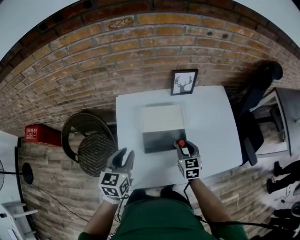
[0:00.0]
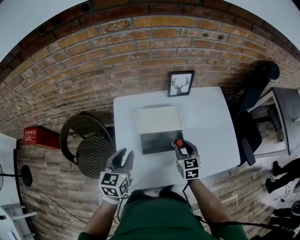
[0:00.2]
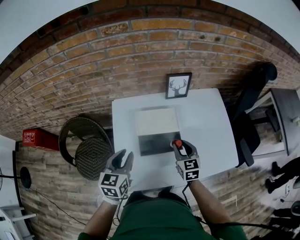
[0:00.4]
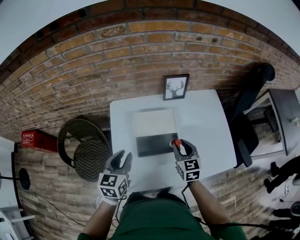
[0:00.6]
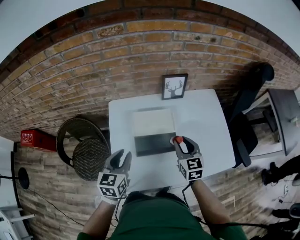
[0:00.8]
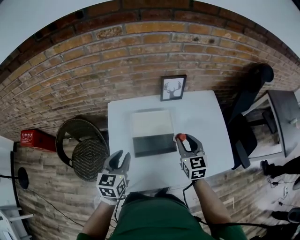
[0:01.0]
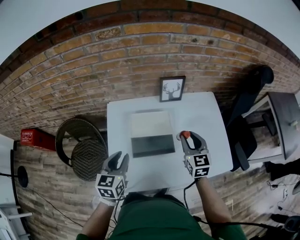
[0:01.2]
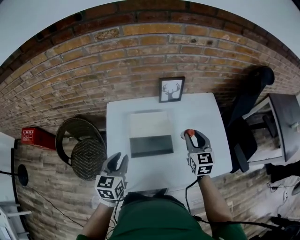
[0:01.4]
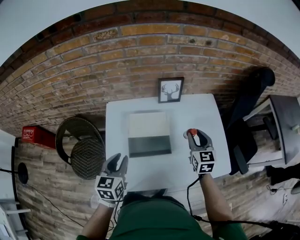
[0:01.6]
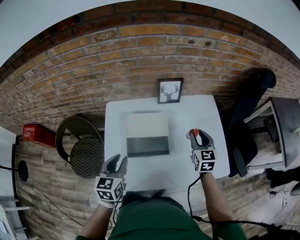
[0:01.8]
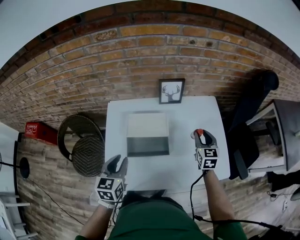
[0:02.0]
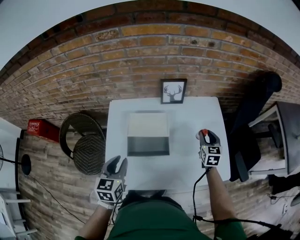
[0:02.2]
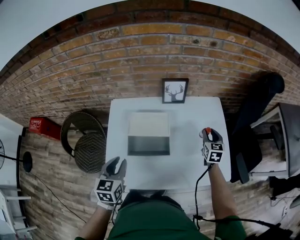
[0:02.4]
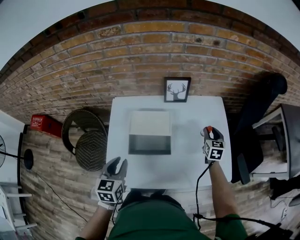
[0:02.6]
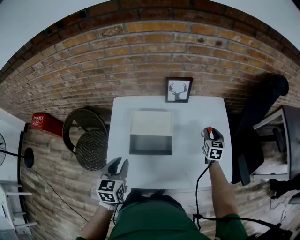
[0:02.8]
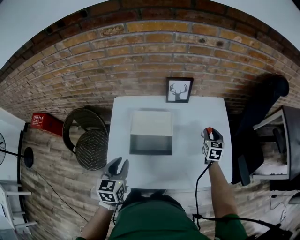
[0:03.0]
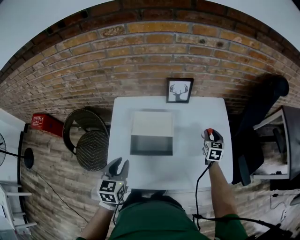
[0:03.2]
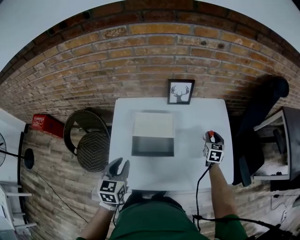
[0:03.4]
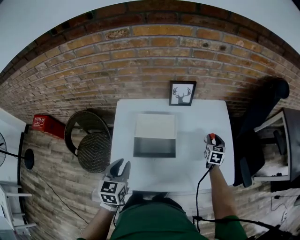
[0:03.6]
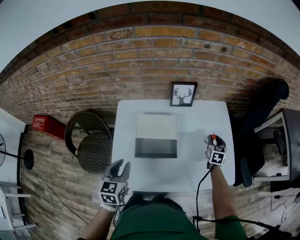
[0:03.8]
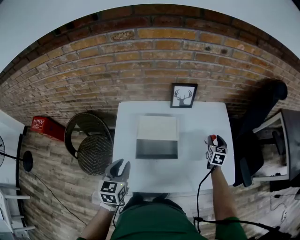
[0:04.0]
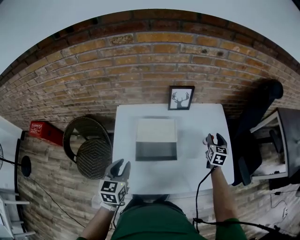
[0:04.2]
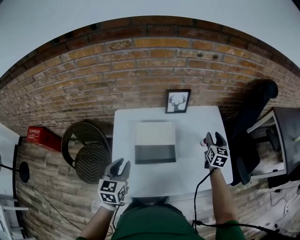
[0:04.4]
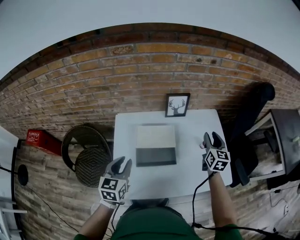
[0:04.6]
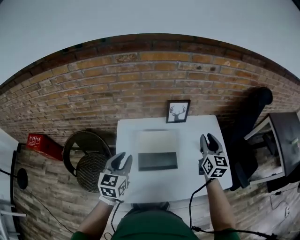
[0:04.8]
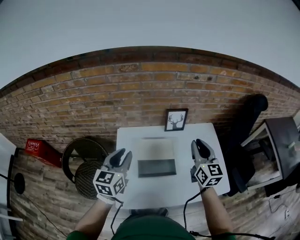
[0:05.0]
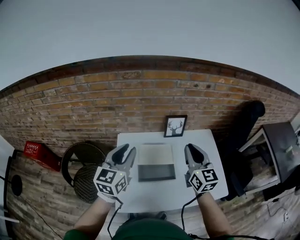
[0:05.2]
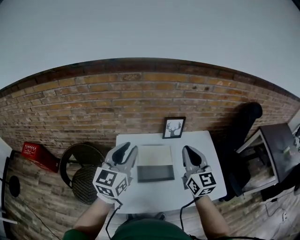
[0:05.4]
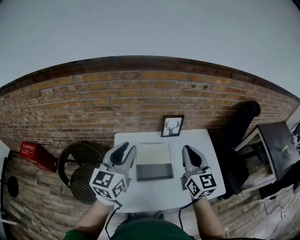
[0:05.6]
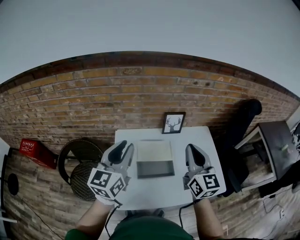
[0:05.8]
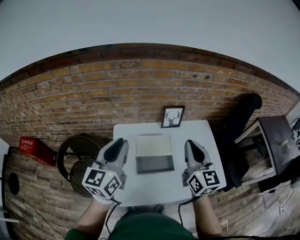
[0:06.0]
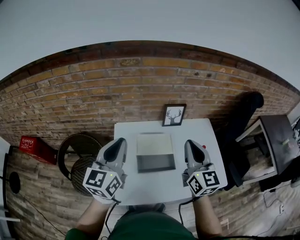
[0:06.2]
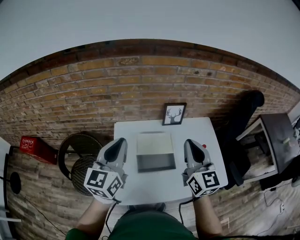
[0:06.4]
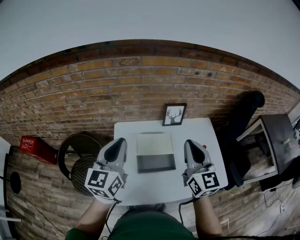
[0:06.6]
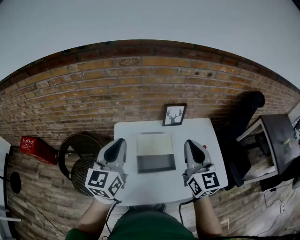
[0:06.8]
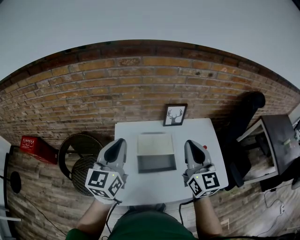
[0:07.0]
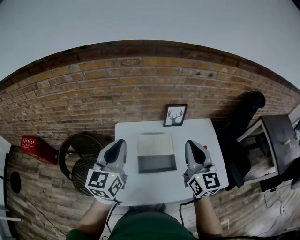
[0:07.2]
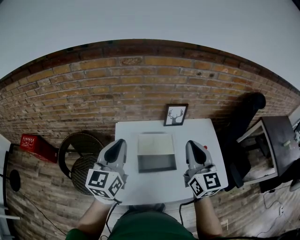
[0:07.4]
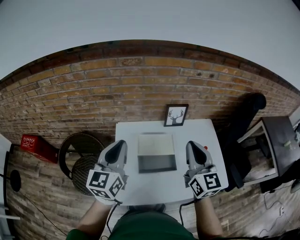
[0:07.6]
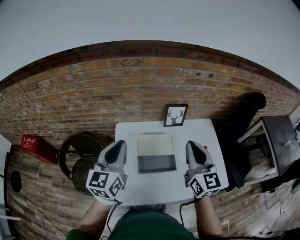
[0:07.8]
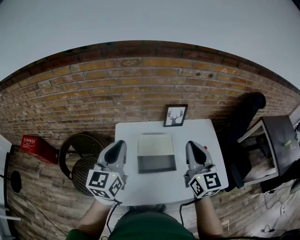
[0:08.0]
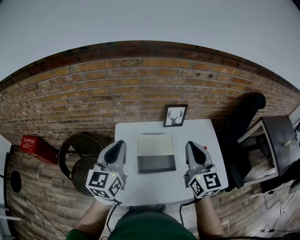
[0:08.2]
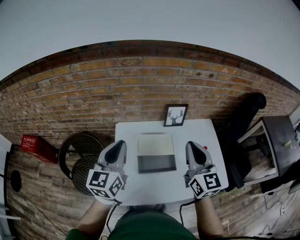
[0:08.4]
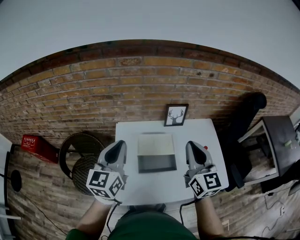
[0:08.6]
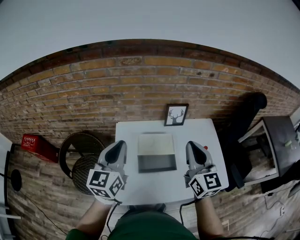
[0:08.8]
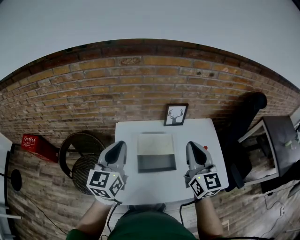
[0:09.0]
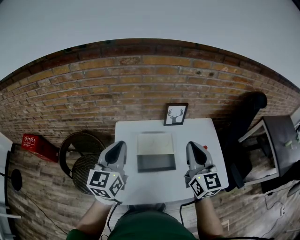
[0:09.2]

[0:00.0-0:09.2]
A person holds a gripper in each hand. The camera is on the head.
0:00.0 to 0:01.6: The right gripper is displaced to the right, upward and forward by roughly 20 cm, while the left gripper moves to the right, roughly 5 cm.
0:01.6 to 0:03.0: The right gripper goes roughly 15 cm downward, to the right and forward.
0:03.0 to 0:04.6: The left gripper shifts by approximately 5 cm. Meanwhile the right gripper is displaced upward by roughly 15 cm.
0:04.6 to 0:06.2: The left gripper is displaced upward by roughly 20 cm, swivels roughly 30 degrees, and closes. Meanwhile the right gripper shifts approximately 25 cm to the left, upward and backward, changes its angle by approximately 20 degrees, and closes up.
0:06.2 to 0:09.2: The grippers stay close to where they were, moving slightly.

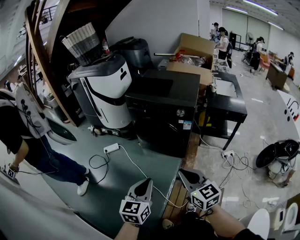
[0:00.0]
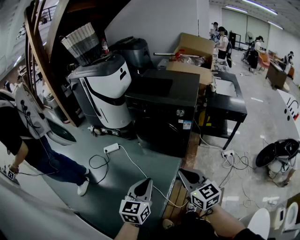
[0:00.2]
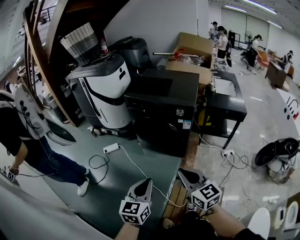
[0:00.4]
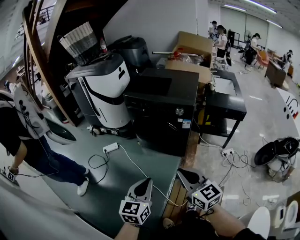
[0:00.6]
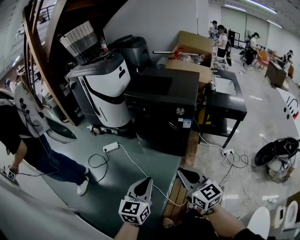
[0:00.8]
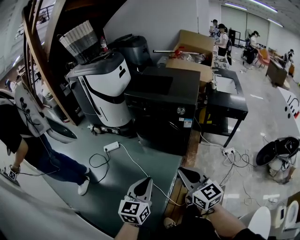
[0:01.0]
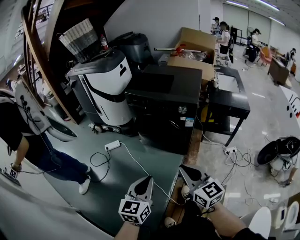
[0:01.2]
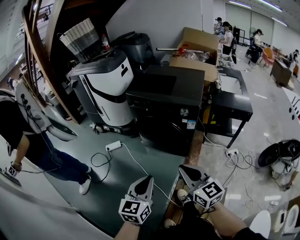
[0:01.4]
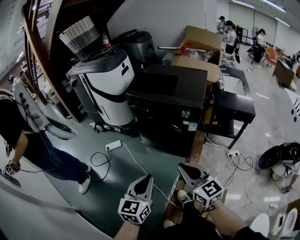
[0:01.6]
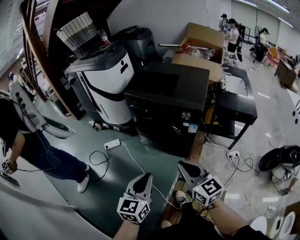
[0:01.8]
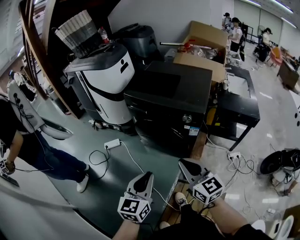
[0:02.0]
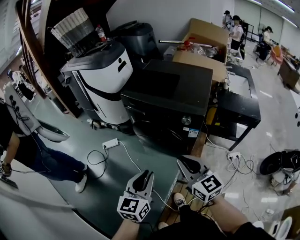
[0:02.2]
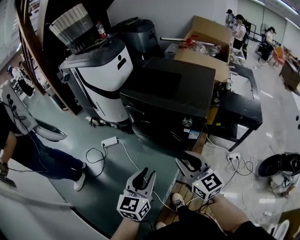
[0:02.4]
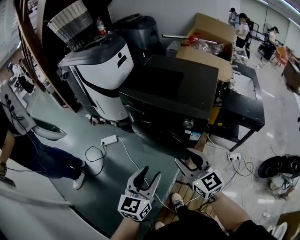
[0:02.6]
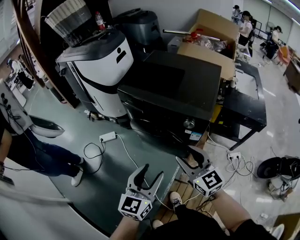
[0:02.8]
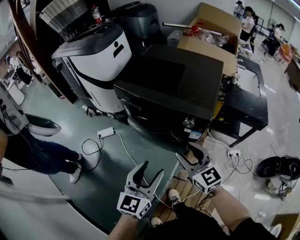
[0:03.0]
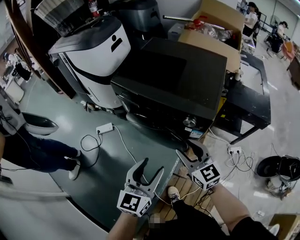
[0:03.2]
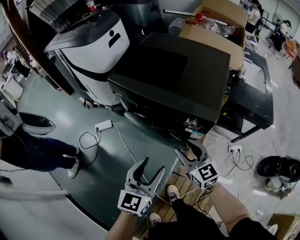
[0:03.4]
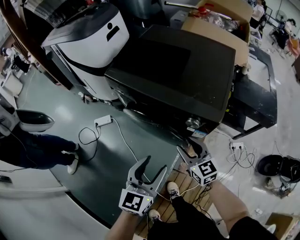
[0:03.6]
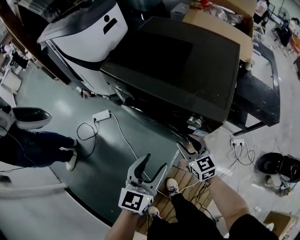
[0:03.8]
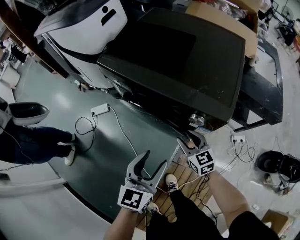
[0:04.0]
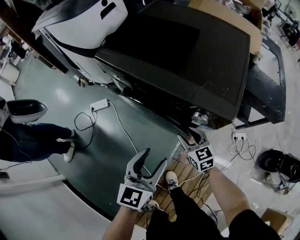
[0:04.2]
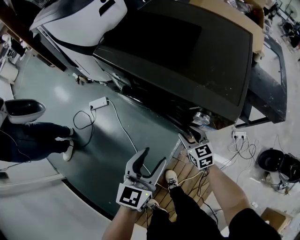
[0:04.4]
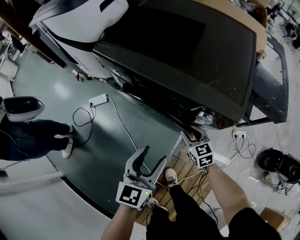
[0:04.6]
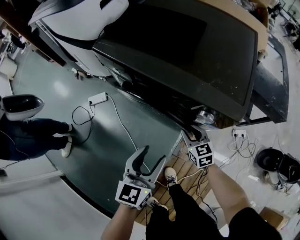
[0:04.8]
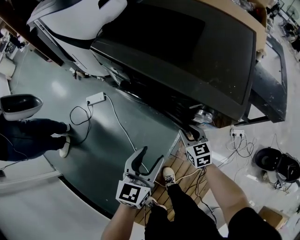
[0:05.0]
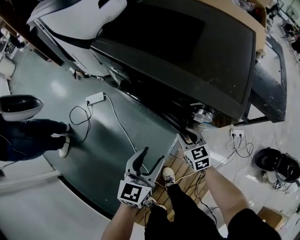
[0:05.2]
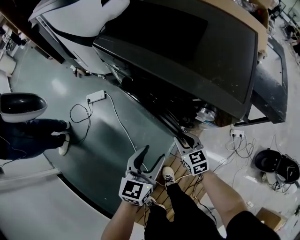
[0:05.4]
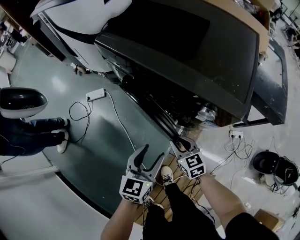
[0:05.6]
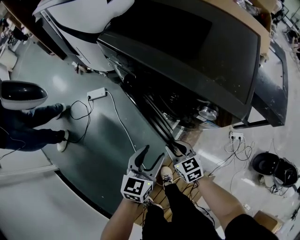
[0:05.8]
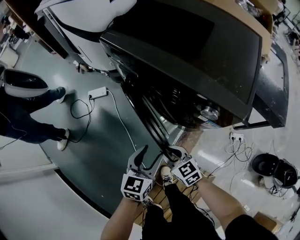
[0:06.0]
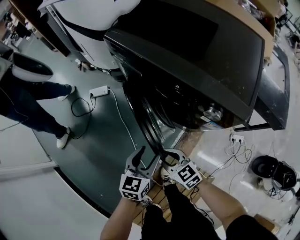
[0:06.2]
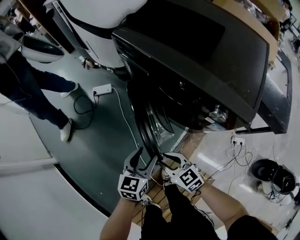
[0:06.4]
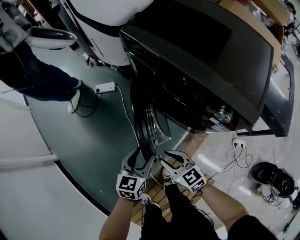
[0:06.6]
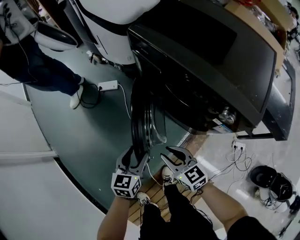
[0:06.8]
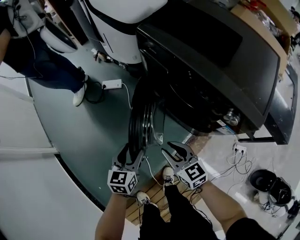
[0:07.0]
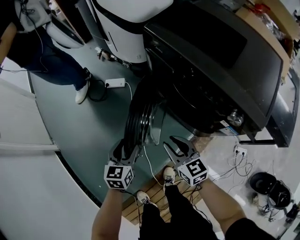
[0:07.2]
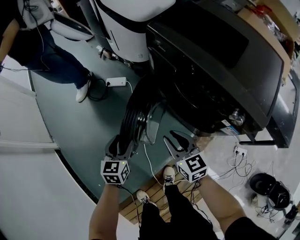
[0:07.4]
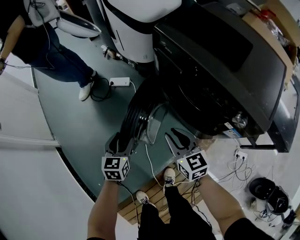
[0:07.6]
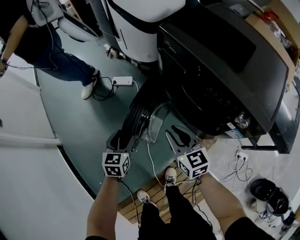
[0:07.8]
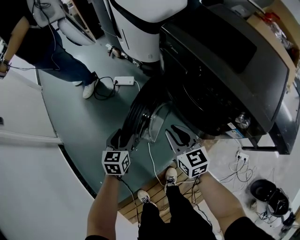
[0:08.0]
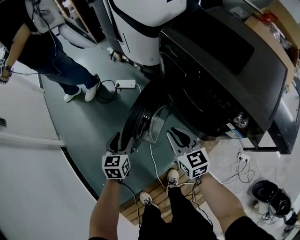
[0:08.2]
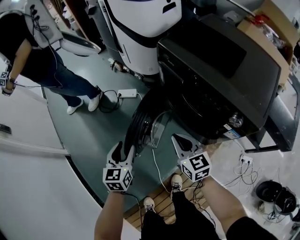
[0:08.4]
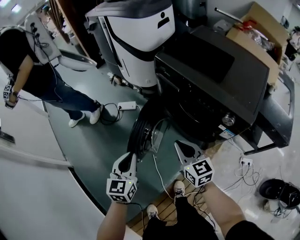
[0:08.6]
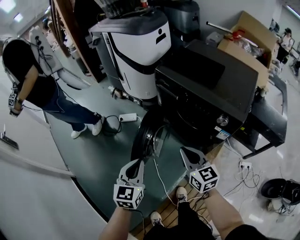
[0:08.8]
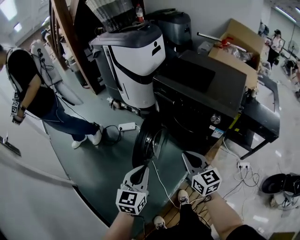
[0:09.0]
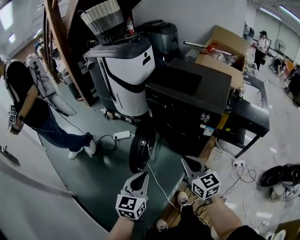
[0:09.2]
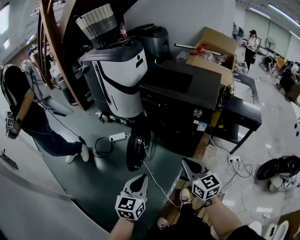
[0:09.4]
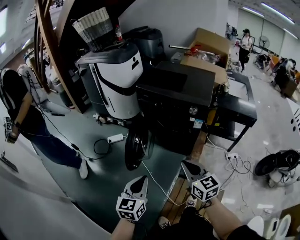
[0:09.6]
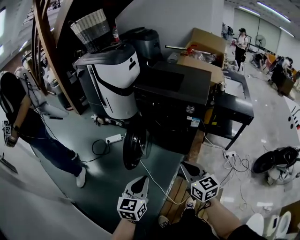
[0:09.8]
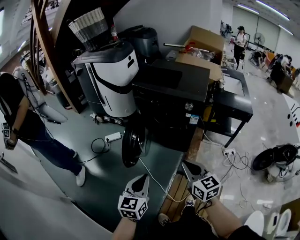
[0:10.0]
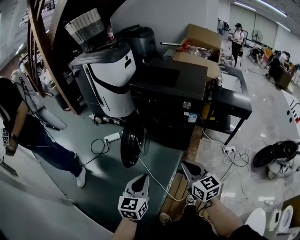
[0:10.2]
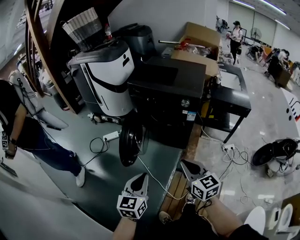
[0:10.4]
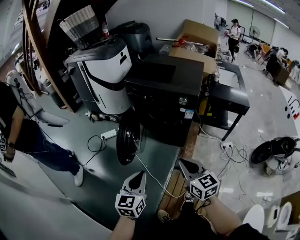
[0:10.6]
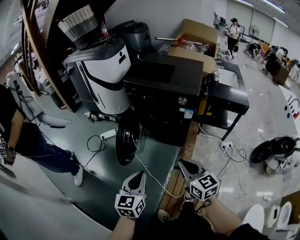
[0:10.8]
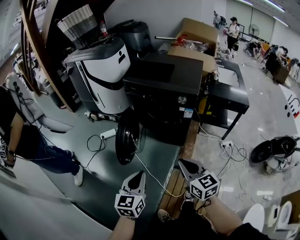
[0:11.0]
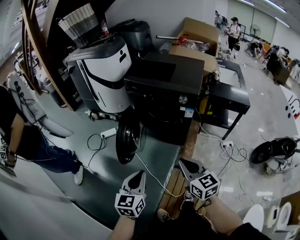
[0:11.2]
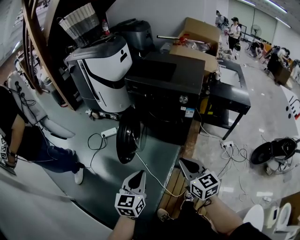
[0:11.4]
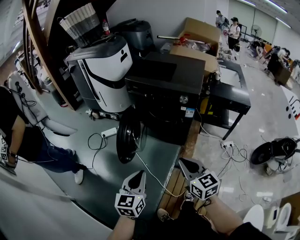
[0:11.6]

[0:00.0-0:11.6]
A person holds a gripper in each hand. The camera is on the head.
0:00.0 to 0:01.4: The grippers move only a little.
0:01.4 to 0:02.8: The right gripper moves forward, approximately 25 cm, and opens its fingers; the left gripper shifts approximately 25 cm forward and to the right, and opens up.
0:02.8 to 0:04.4: The left gripper is displaced downward and forward by about 20 cm. The right gripper is displaced downward and forward by approximately 35 cm, and changes its angle by roughly 30 degrees.
0:04.4 to 0:05.8: The right gripper moves to the left and backward, about 10 cm. The left gripper shifts about 10 cm downward.
0:05.8 to 0:07.2: The right gripper is displaced to the left and upward by some 15 cm, while the left gripper moves to the left, some 20 cm, and rotates approximately 20 degrees.
0:07.2 to 0:08.8: The two grippers go about 20 cm upward and backward. The left gripper closes; the right gripper closes its fingers.
0:08.8 to 0:10.2: Both grippers travel together backward, approximately 25 cm. The left gripper turns by about 20 degrees.
0:10.2 to 0:11.6: The grippers stay close to where they were, moving slightly.

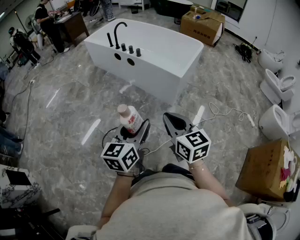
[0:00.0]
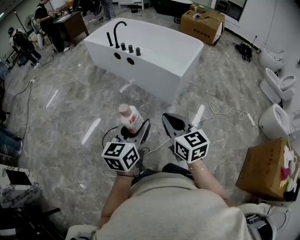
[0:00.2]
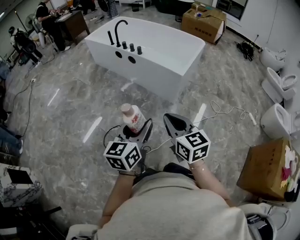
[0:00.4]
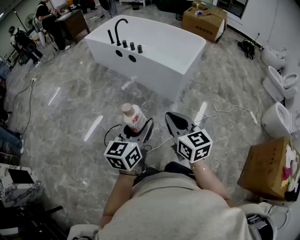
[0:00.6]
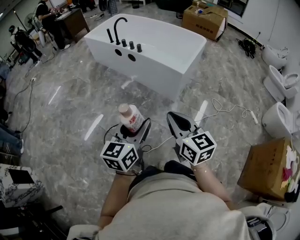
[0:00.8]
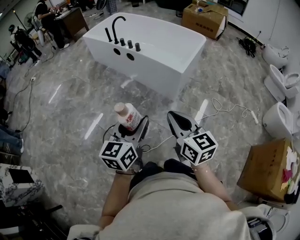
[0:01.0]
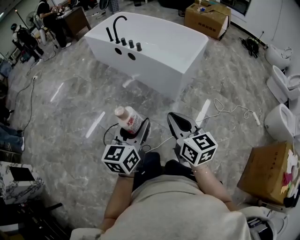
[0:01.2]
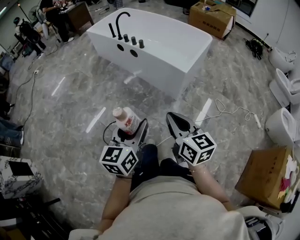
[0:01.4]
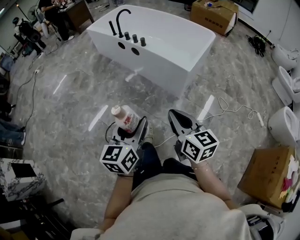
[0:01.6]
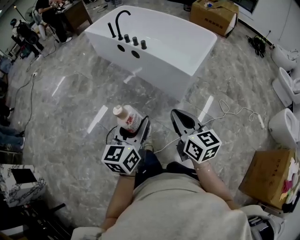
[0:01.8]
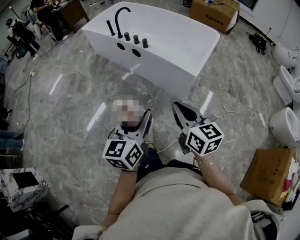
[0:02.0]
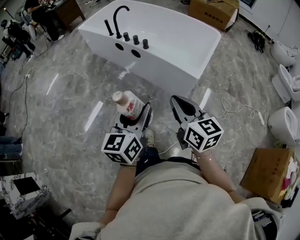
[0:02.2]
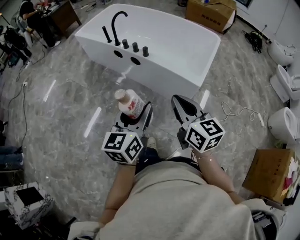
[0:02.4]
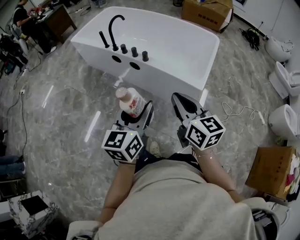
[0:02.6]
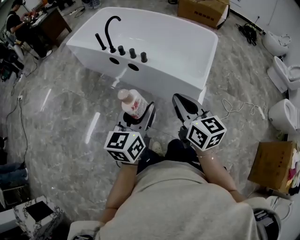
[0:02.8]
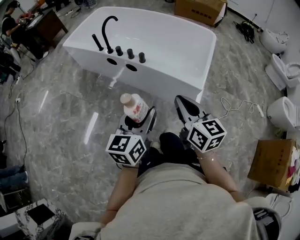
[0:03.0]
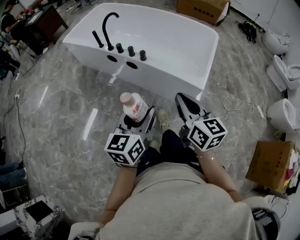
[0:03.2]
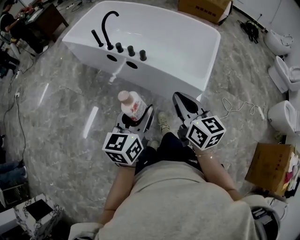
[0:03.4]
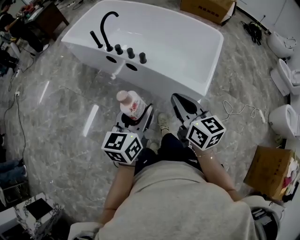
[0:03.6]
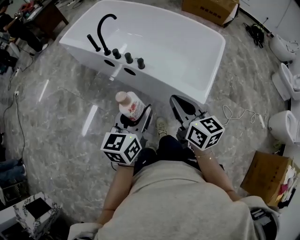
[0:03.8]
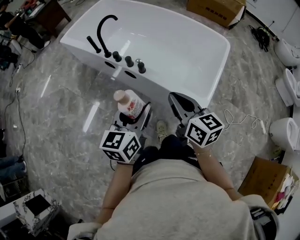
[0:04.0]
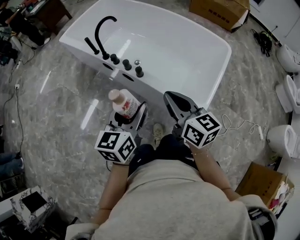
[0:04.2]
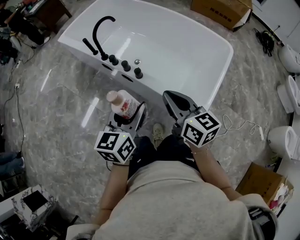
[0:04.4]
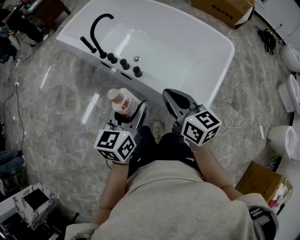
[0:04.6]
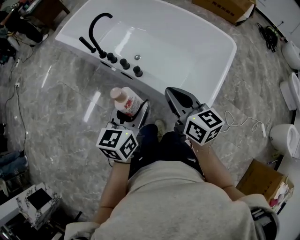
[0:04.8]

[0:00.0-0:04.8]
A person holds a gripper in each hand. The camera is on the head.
0:00.0 to 0:01.6: Both grippers travel together forward, some 10 cm.
0:01.6 to 0:03.2: Both grippers travel together forward, some 35 cm.
0:03.2 to 0:04.8: Both grippers move forward, approximately 30 cm.
